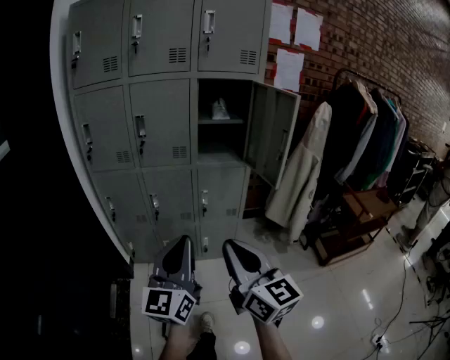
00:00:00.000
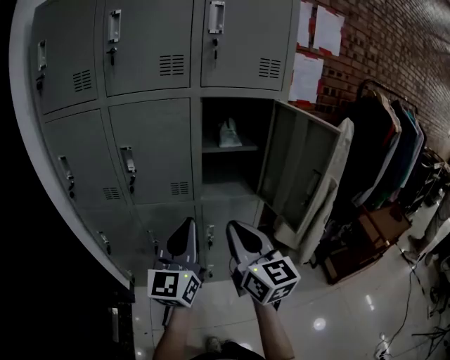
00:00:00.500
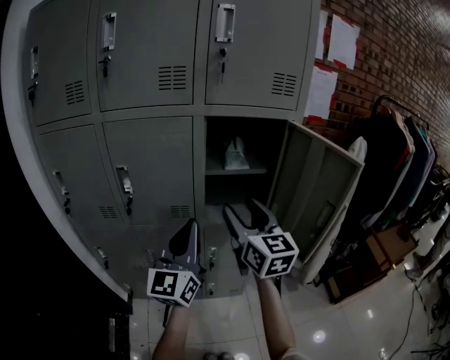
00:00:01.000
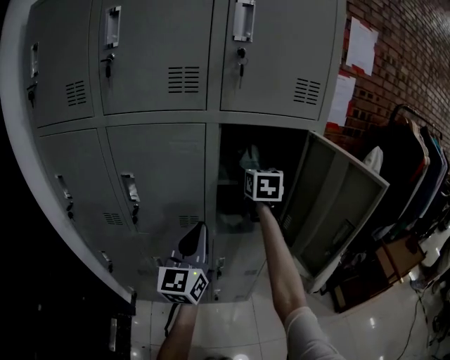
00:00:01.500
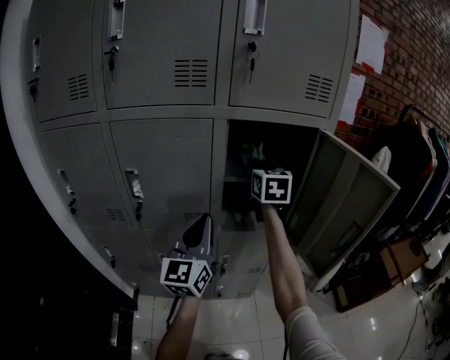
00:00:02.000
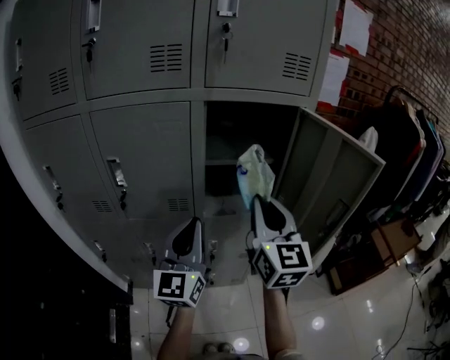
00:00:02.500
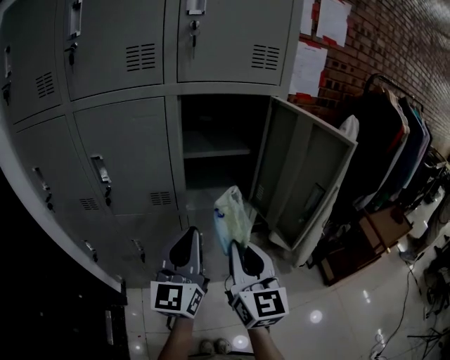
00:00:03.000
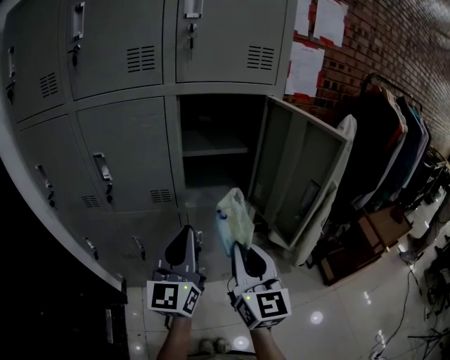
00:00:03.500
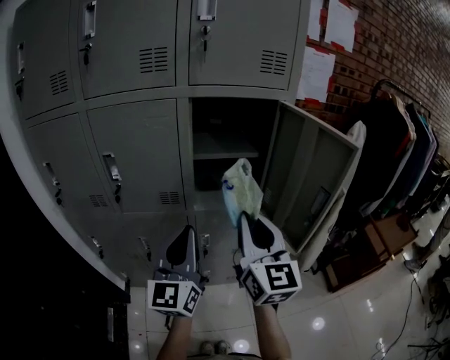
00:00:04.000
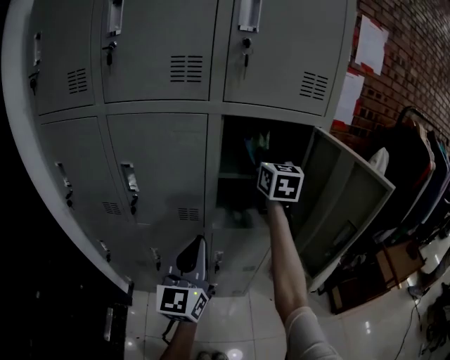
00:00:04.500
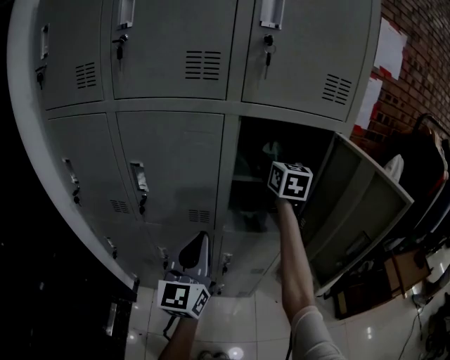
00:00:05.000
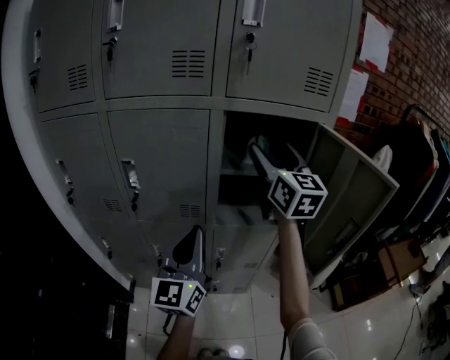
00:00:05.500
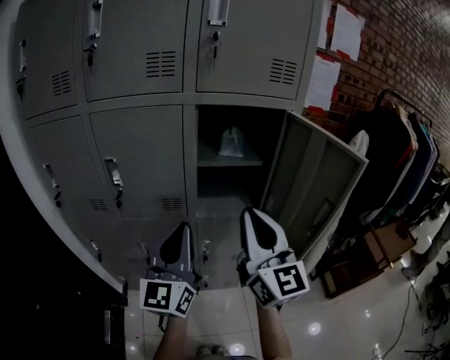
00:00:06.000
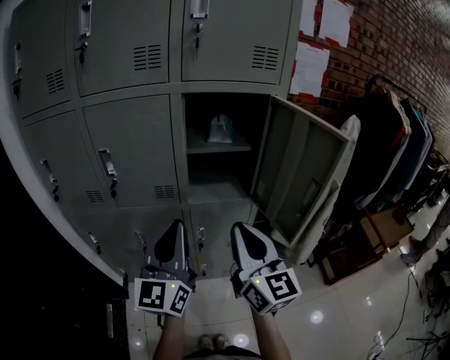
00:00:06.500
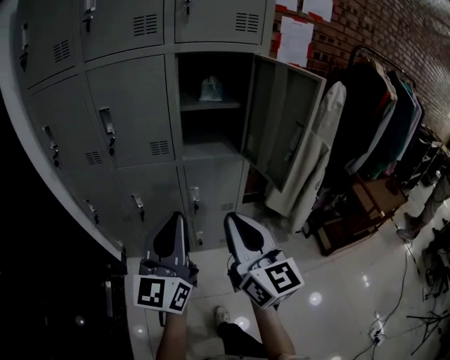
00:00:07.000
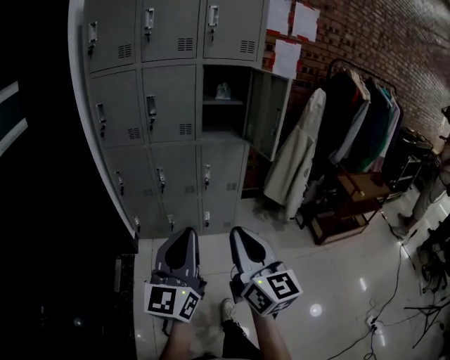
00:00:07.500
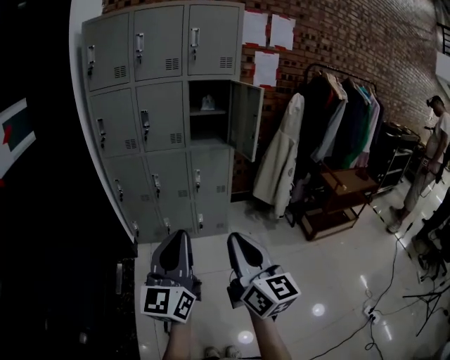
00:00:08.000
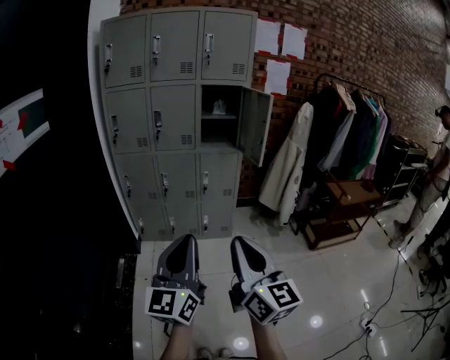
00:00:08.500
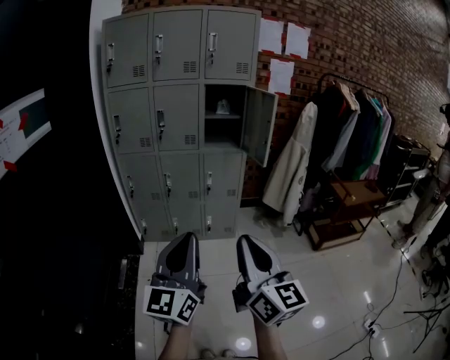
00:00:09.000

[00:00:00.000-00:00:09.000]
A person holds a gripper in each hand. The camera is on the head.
00:00:00.000 to 00:00:02.000: The two grippers travel together, forward, approximately 50 cm. The right gripper rotates roughly 30 degrees, and opens and closes again.
00:00:02.000 to 00:00:04.500: The right gripper moves some 35 cm backward and comes back, while the left gripper goes some 5 cm backward.
00:00:04.500 to 00:00:07.000: The right gripper goes approximately 40 cm backward, turns by about 20 degrees, and opens, then closes again. The left gripper goes approximately 20 cm backward.
00:00:07.000 to 00:00:09.000: The two grippers travel together, backward, roughly 50 cm.

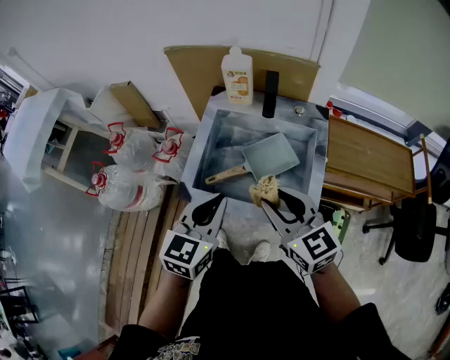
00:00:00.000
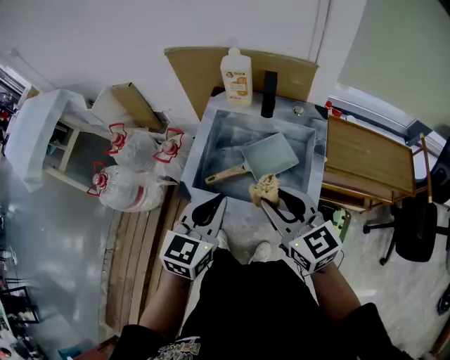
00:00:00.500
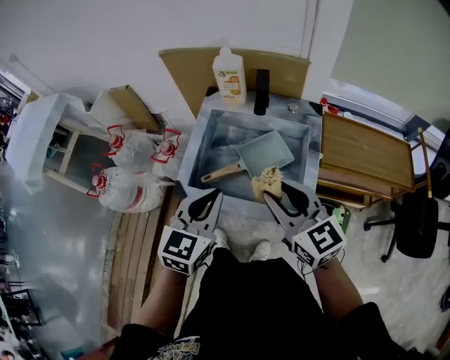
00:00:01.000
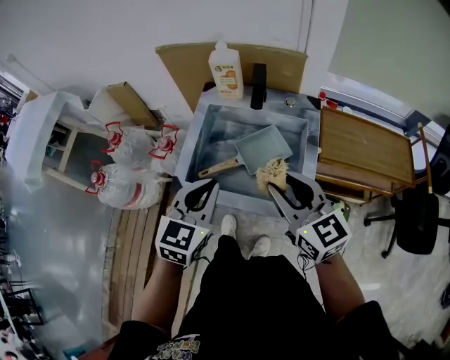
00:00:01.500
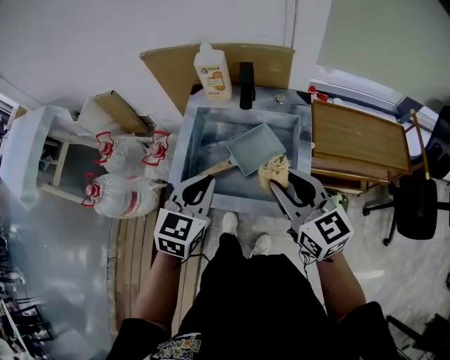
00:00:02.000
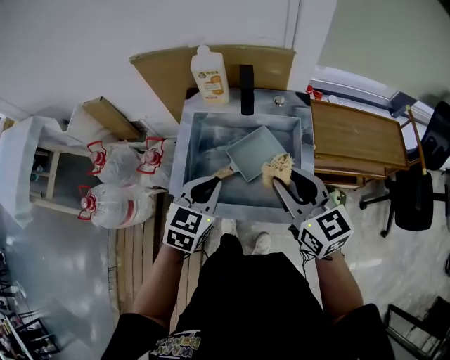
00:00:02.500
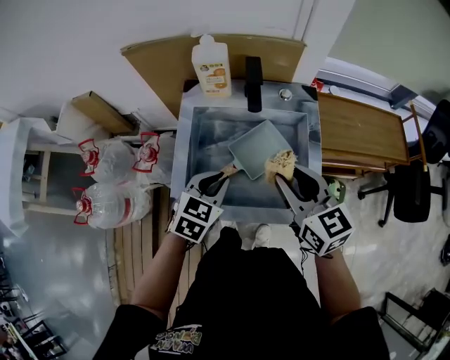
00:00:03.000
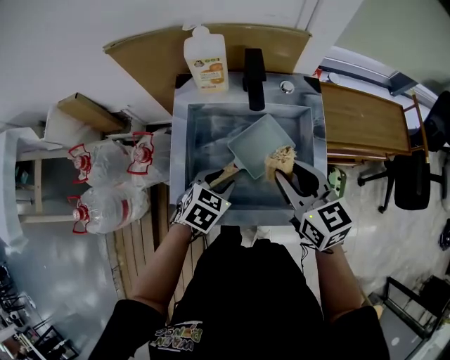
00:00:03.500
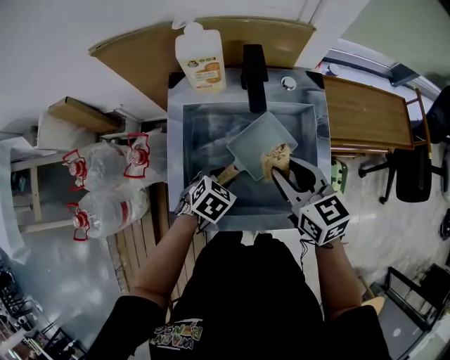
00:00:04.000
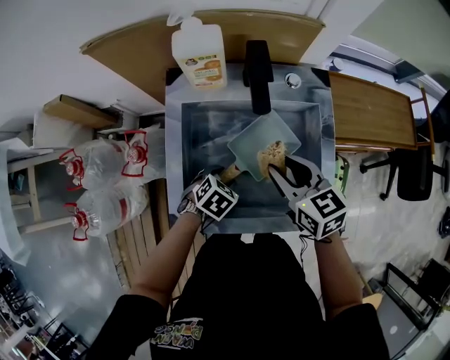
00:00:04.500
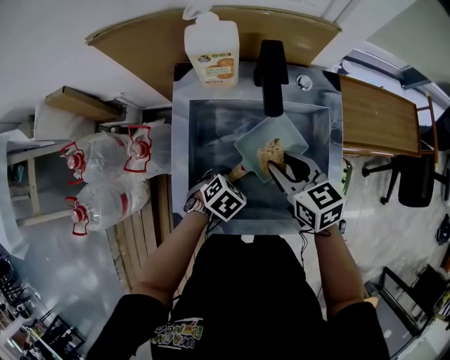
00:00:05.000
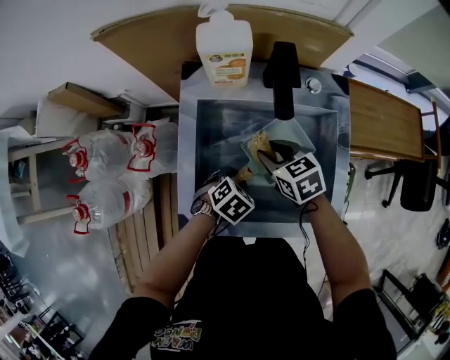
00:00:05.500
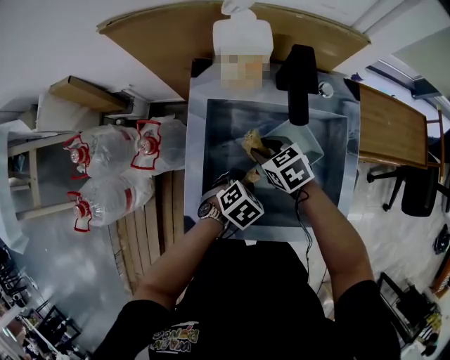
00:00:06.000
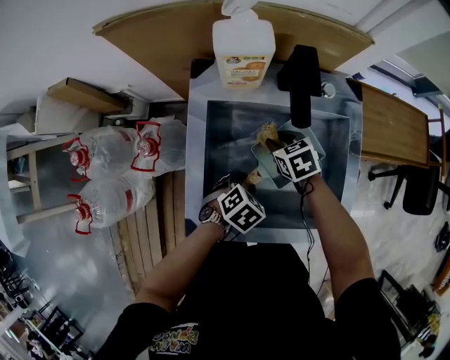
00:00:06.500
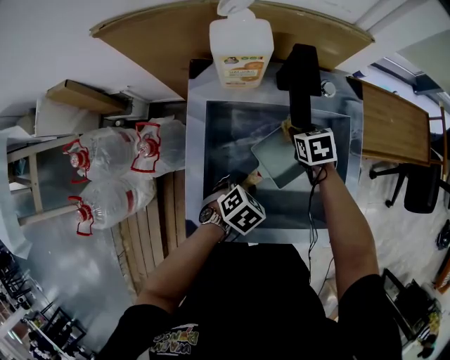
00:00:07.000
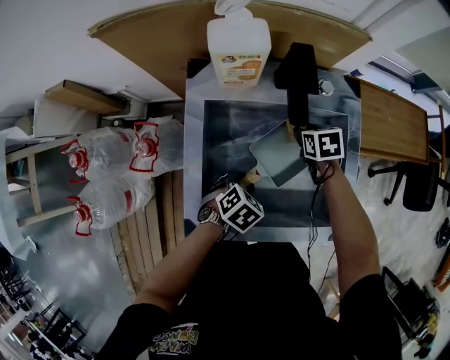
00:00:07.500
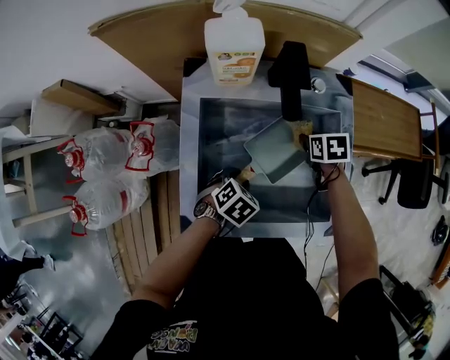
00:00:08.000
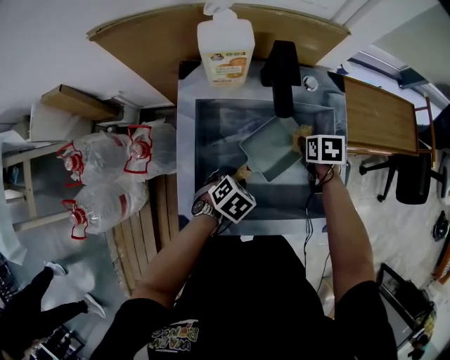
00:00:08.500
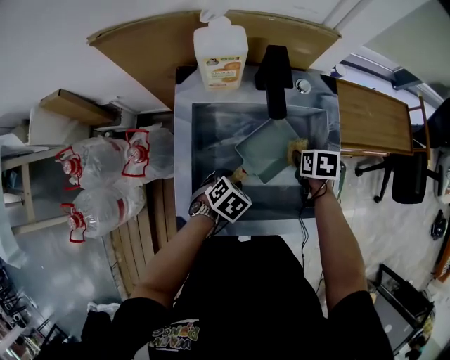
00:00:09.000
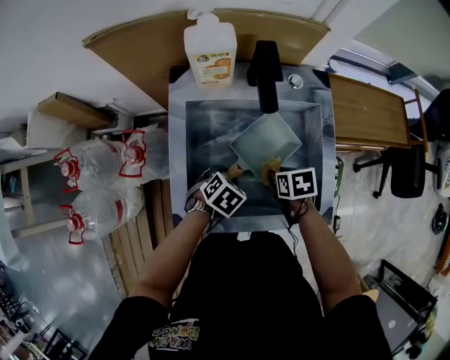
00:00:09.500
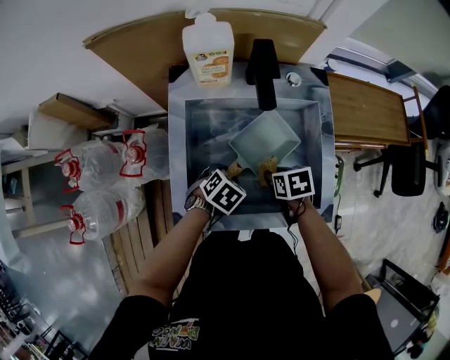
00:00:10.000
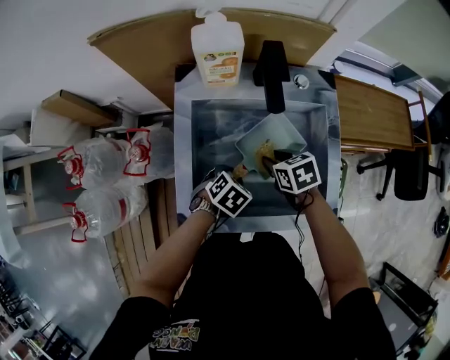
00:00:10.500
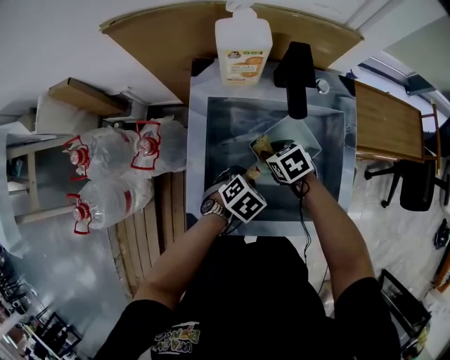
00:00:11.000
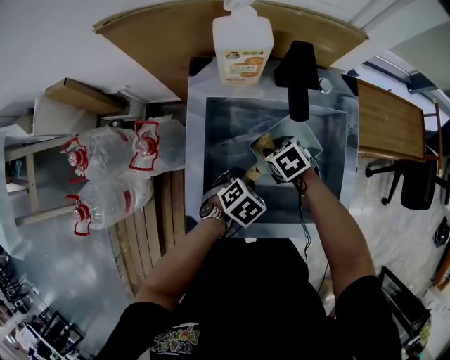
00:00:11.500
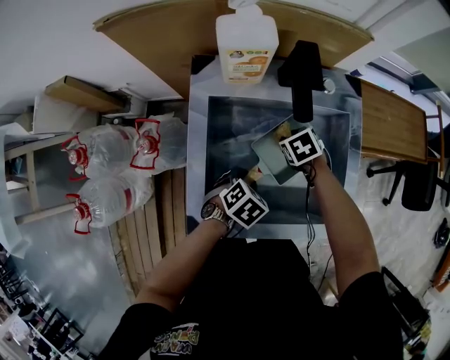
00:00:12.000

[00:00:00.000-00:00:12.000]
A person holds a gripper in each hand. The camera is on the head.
00:00:00.000 to 00:00:02.000: The right gripper moves to the right, approximately 5 cm.
00:00:02.000 to 00:00:04.000: The right gripper travels forward, downward and to the left by about 20 cm, and rotates about 20 degrees, while the left gripper travels downward and forward by roughly 25 cm, tilts its fingers about 40 degrees downward, and opens up.
00:00:04.000 to 00:00:06.000: The right gripper moves downward and to the left, roughly 20 cm, and changes its angle by roughly 30 degrees.
00:00:06.000 to 00:00:08.000: The right gripper travels to the right by about 15 cm, and changes its angle by roughly 40 degrees.
00:00:08.000 to 00:00:10.000: The right gripper heads backward, covering roughly 15 cm.
00:00:10.000 to 00:00:12.000: The right gripper shifts by about 15 cm, and rotates approximately 30 degrees.

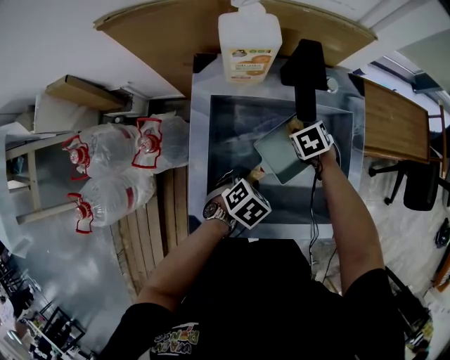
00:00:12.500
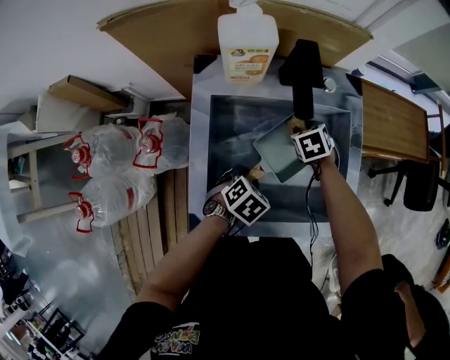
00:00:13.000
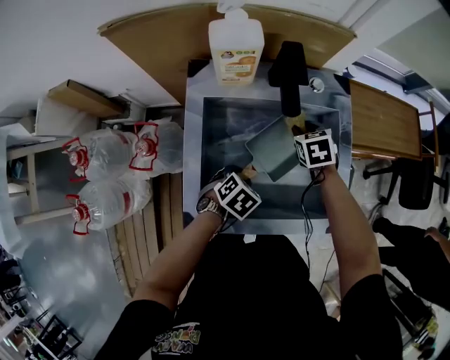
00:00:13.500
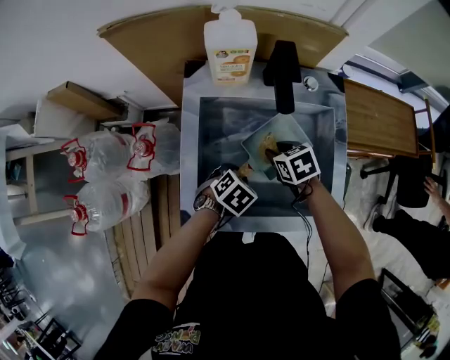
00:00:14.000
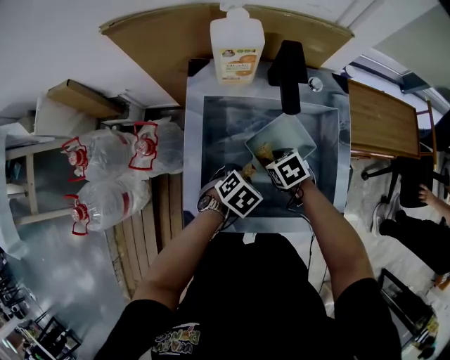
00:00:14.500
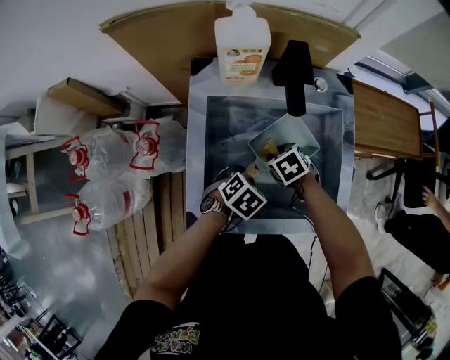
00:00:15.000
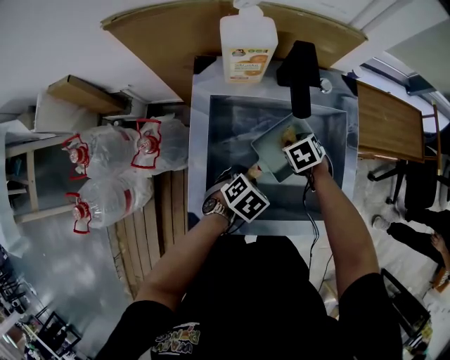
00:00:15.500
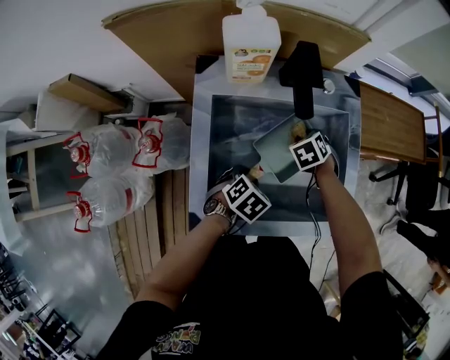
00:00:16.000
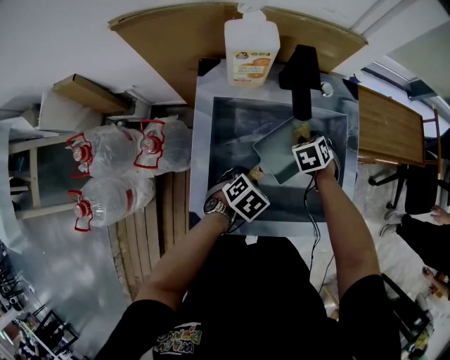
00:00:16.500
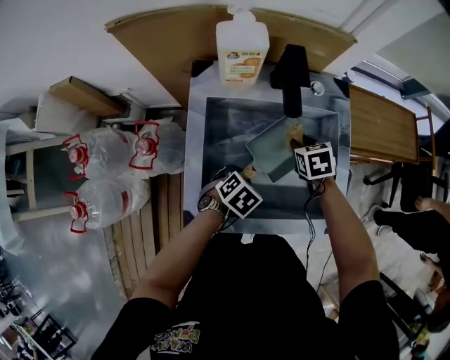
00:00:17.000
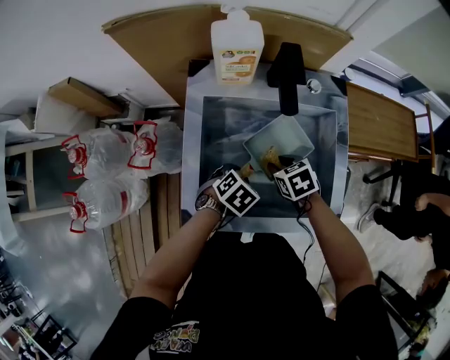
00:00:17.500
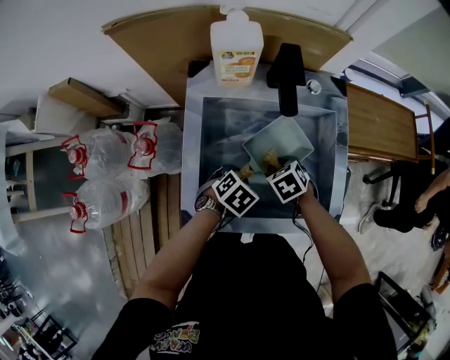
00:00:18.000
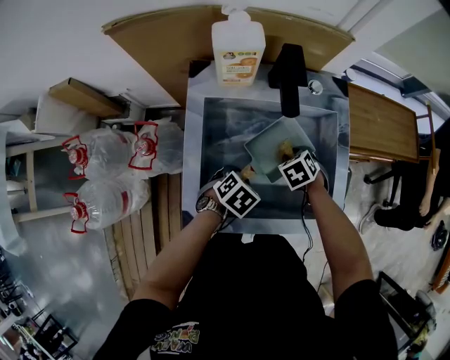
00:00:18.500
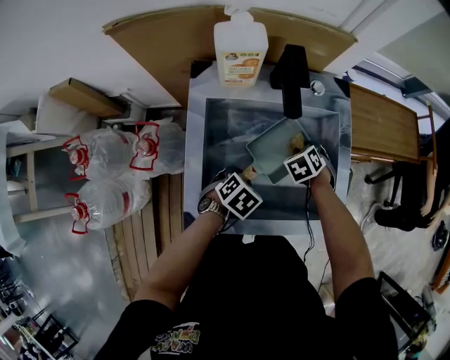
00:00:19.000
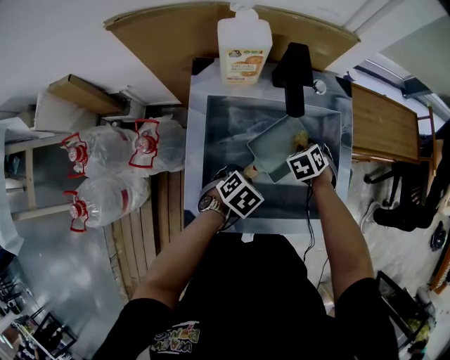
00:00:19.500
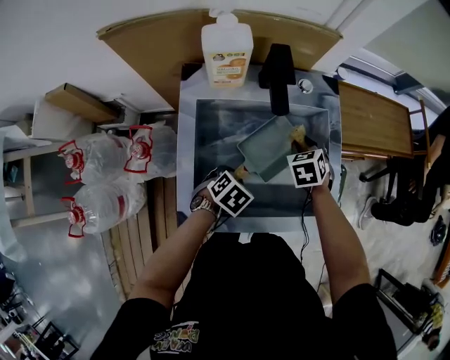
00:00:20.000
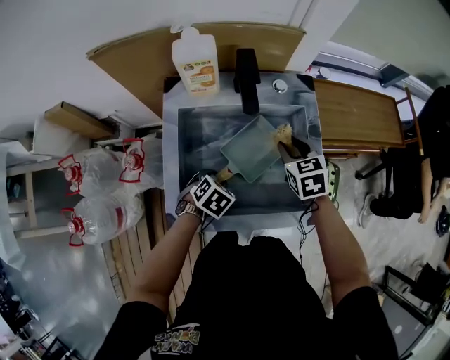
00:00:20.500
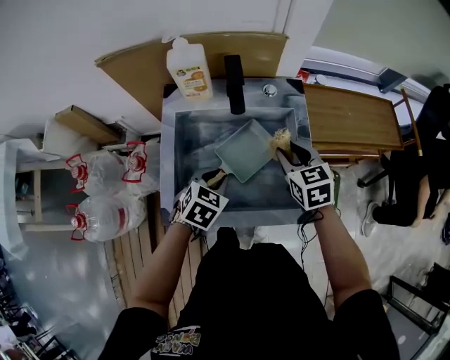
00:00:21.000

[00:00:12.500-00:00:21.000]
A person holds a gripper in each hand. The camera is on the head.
00:00:12.500 to 00:00:14.500: The right gripper moves some 15 cm.
00:00:14.500 to 00:00:16.500: The right gripper ends up approximately 15 cm from where it was, and changes its angle by some 30 degrees.
00:00:19.000 to 00:00:21.000: The right gripper moves upward, roughly 20 cm, and angles its fingers upward, by some 30 degrees. Meanwhile the left gripper heads upward, covering about 10 cm, and changes its angle by some 20 degrees.
